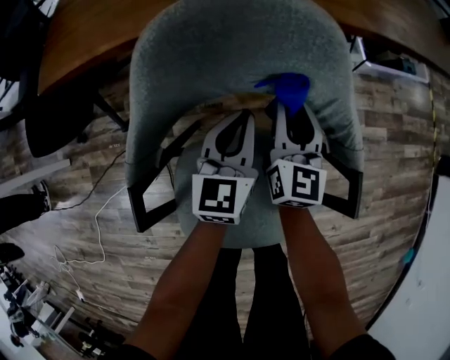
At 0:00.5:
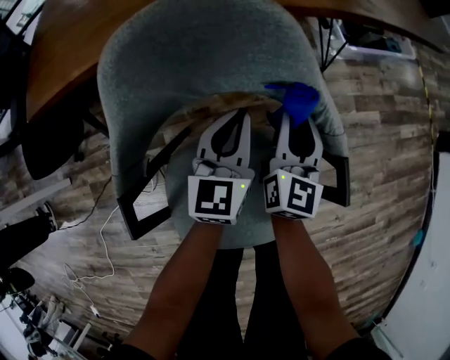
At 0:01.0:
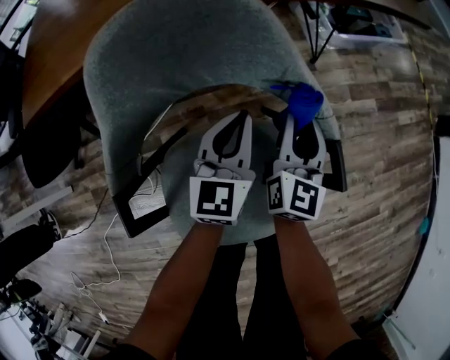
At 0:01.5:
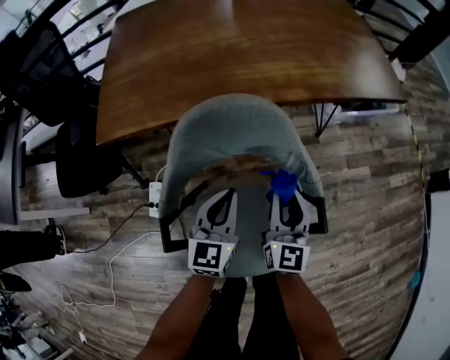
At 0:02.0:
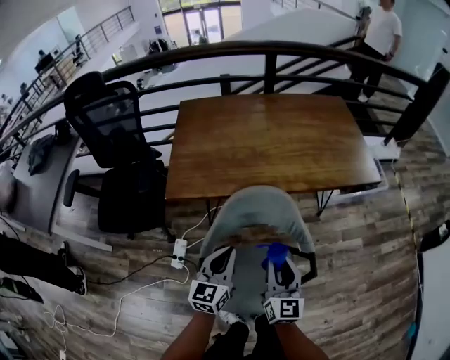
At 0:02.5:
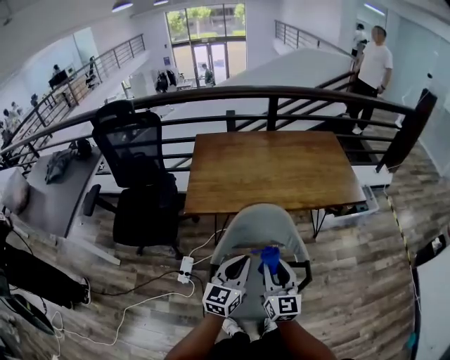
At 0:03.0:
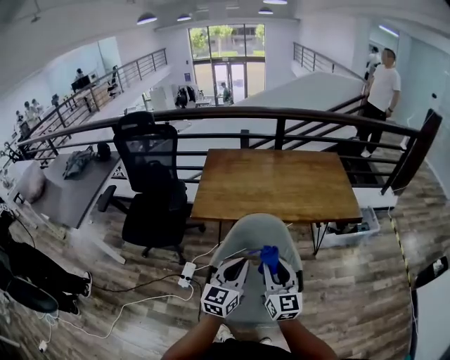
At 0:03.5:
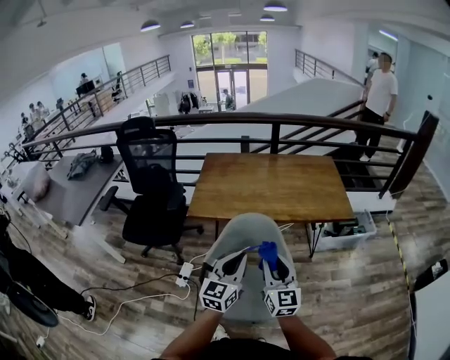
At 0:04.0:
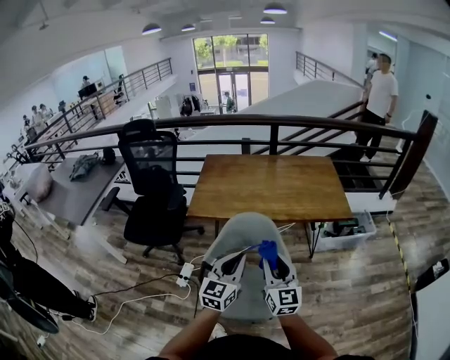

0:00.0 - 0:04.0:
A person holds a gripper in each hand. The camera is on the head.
0:00.0 - 0:02.0: Both grippers move upward and backward, approximately 30 cm.
0:02.0 - 0:04.0: The right gripper shifts some 20 cm upward and backward, while the left gripper heads upward, backward and to the right, covering some 25 cm.

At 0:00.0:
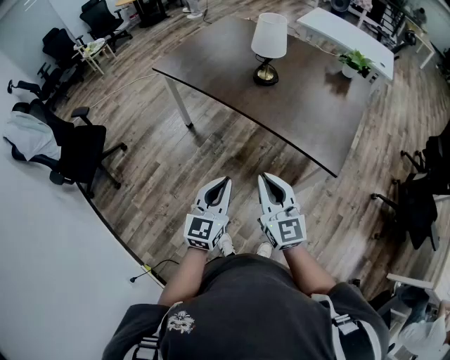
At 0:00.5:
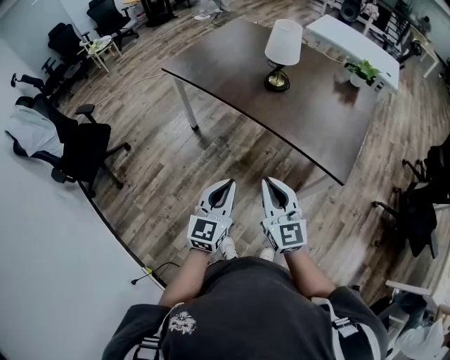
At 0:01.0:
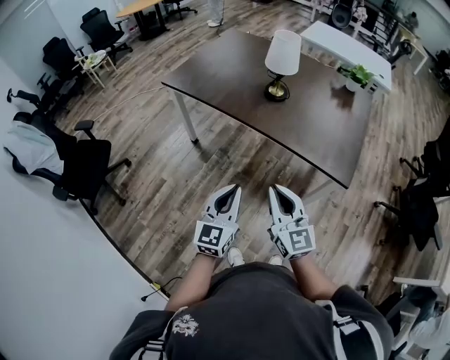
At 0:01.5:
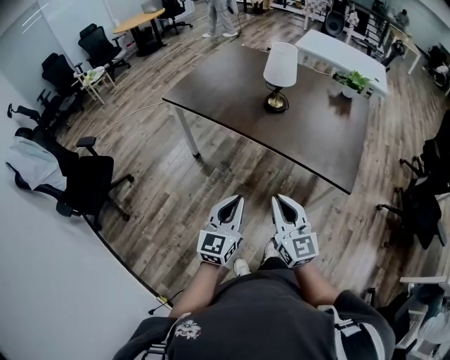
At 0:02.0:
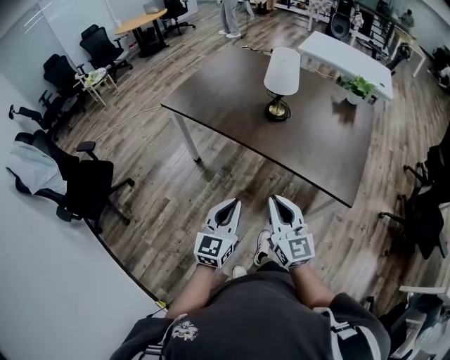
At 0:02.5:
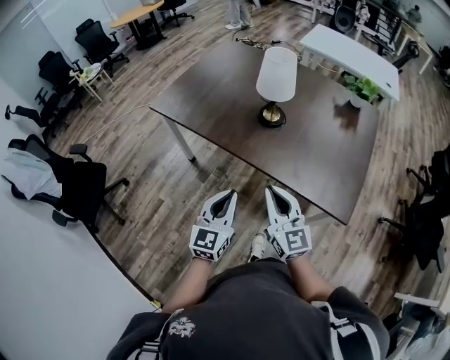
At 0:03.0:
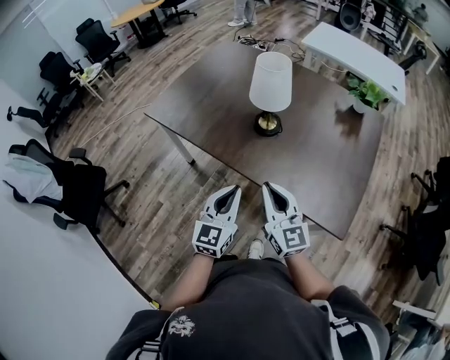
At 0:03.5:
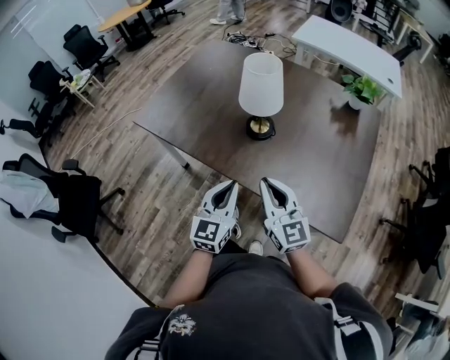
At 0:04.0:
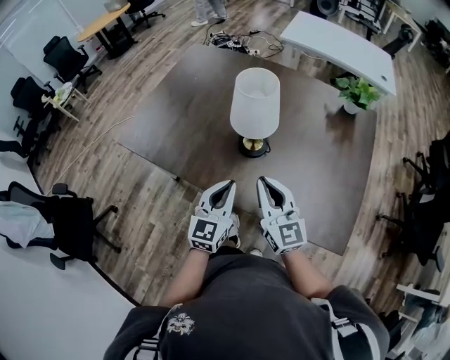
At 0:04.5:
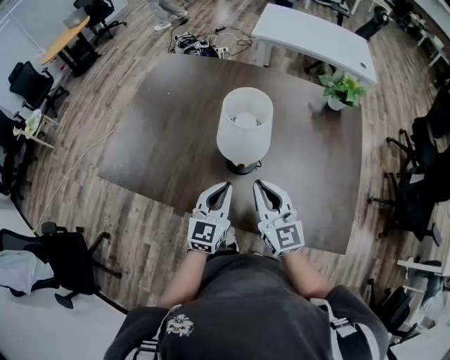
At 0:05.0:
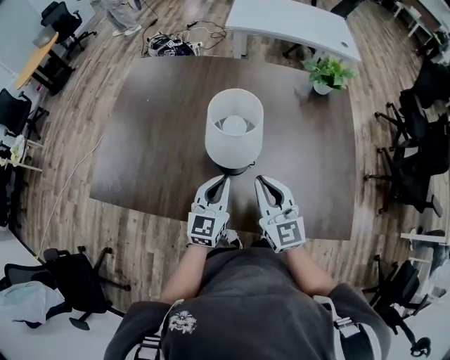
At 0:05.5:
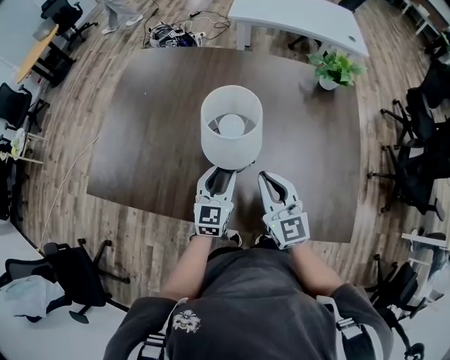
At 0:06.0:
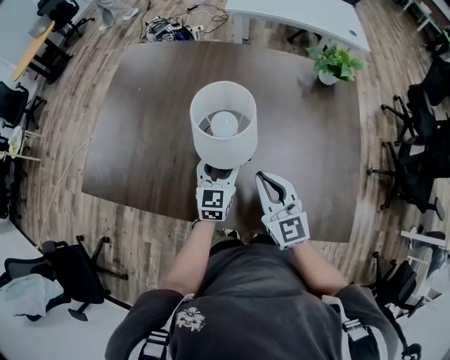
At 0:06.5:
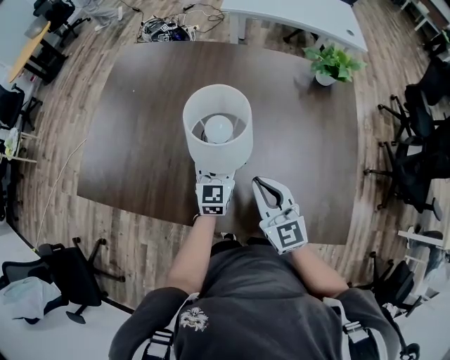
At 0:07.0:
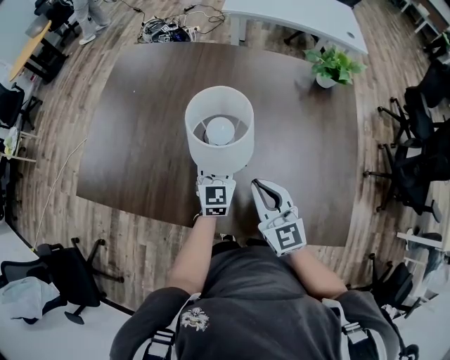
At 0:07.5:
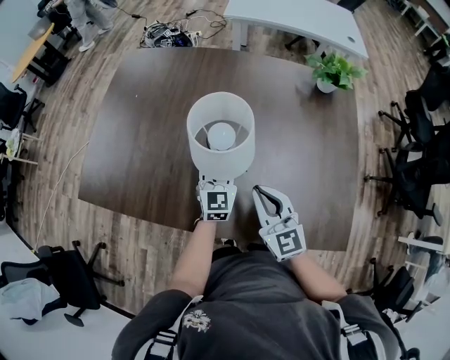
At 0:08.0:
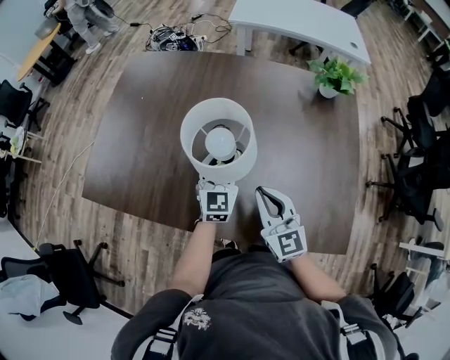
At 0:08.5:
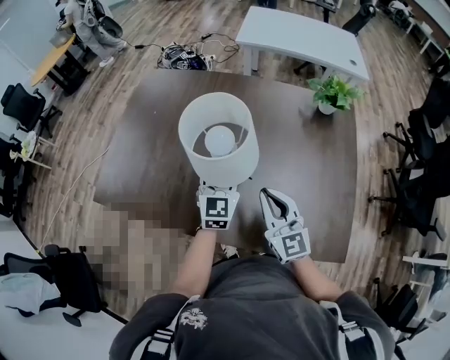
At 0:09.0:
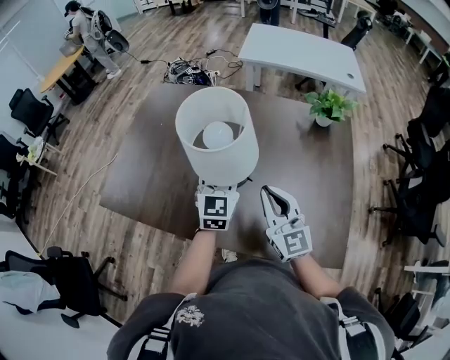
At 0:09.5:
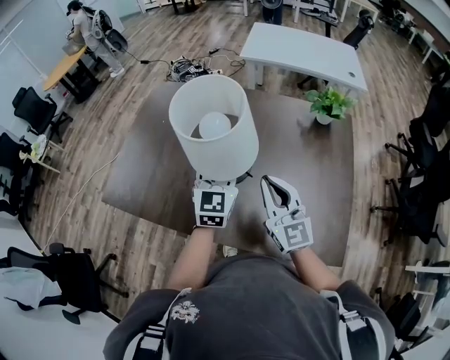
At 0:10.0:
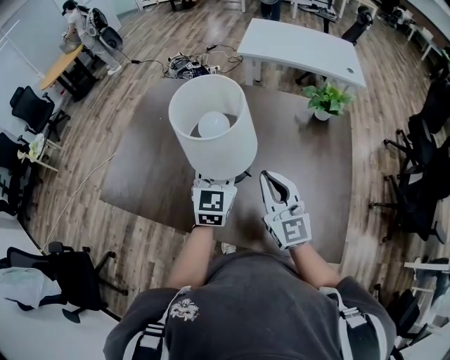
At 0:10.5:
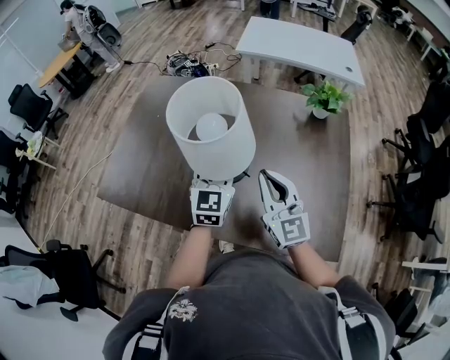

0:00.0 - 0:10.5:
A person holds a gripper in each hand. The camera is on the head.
0:00.0 - 0:02.0: The two grippers go approximately 10 cm forward and to the left.
0:02.0 - 0:04.0: The two grippers go approximately 35 cm forward.
0:04.0 - 0:06.5: The left gripper moves forward and downward, some 25 cm, and opens. Meanwhile the right gripper shifts some 15 cm forward and downward.
0:06.5 - 0:08.5: The right gripper heads upward, covering about 5 cm. Meanwhile the left gripper moves upward, about 10 cm, and closes.
0:08.5 - 0:10.5: The grippers both shift upward by some 5 cm.

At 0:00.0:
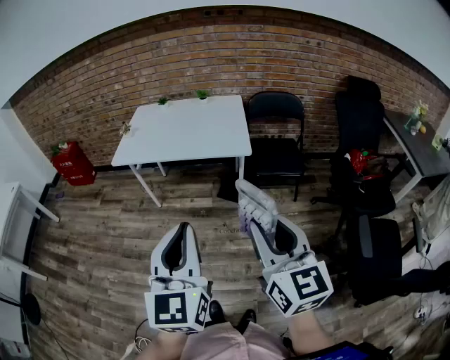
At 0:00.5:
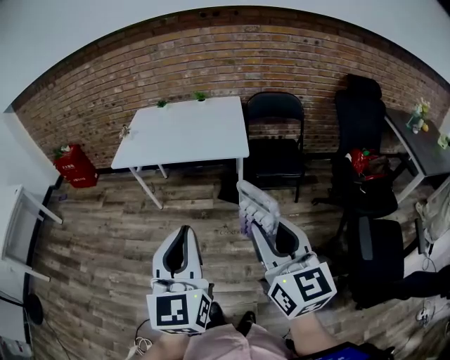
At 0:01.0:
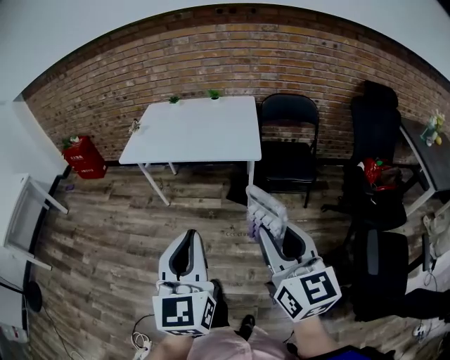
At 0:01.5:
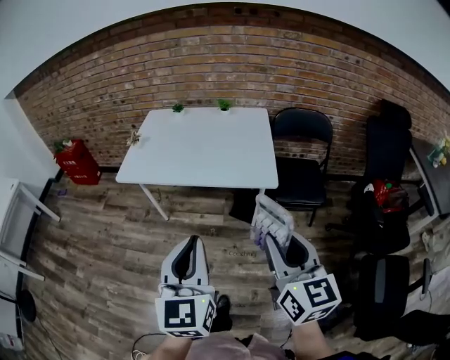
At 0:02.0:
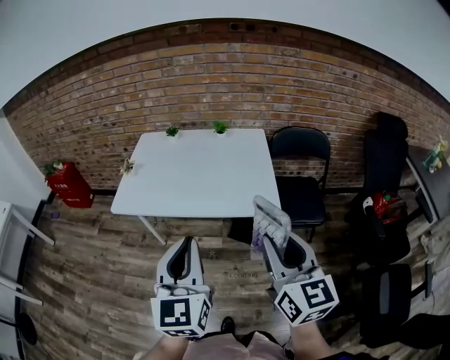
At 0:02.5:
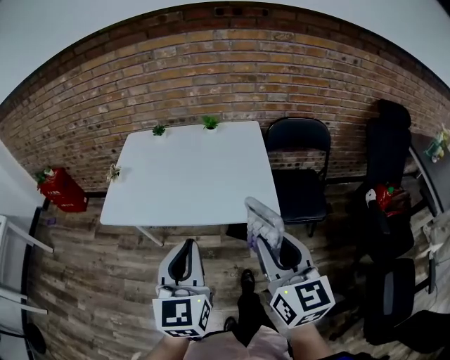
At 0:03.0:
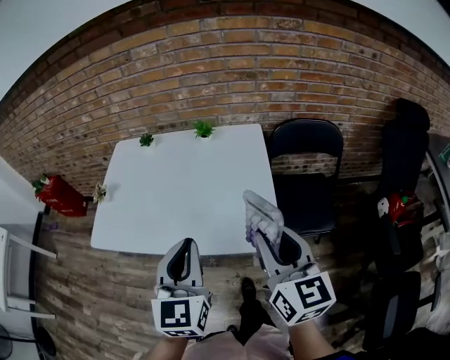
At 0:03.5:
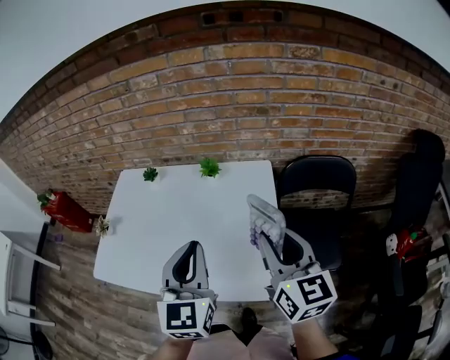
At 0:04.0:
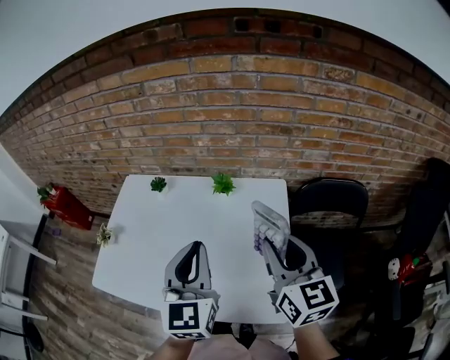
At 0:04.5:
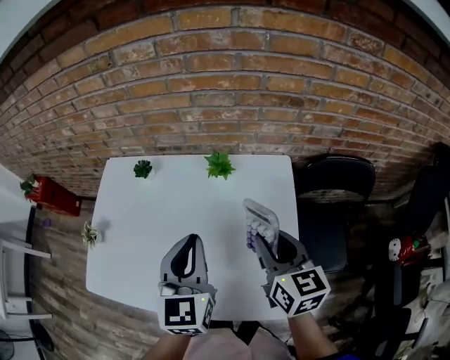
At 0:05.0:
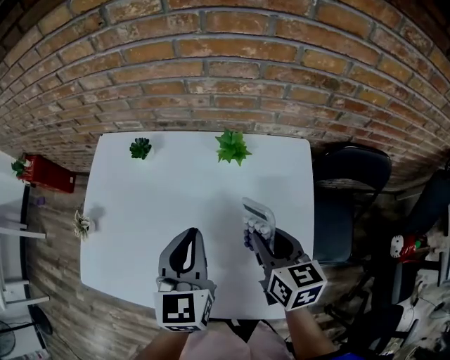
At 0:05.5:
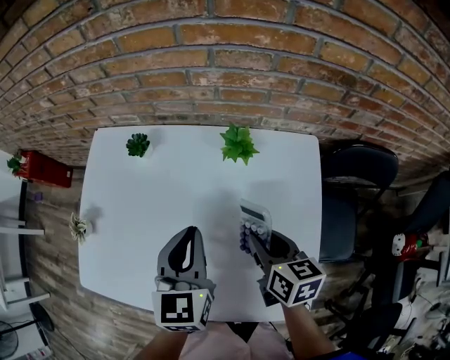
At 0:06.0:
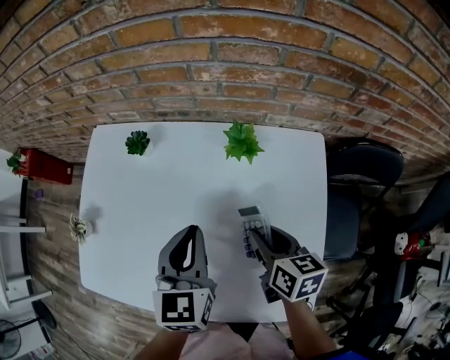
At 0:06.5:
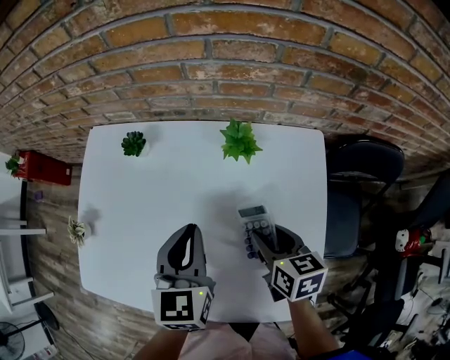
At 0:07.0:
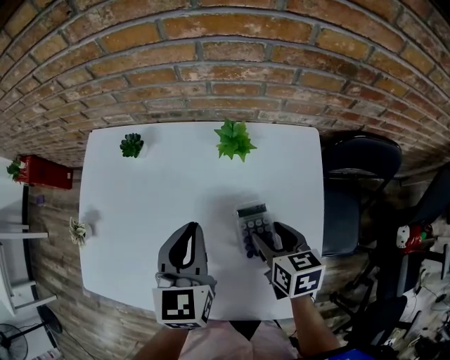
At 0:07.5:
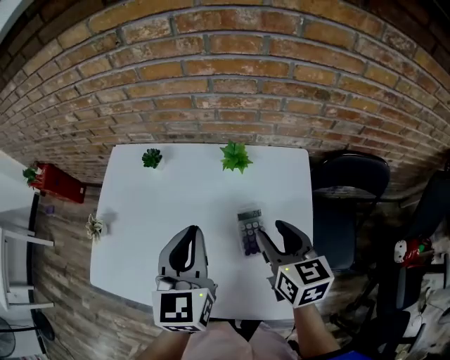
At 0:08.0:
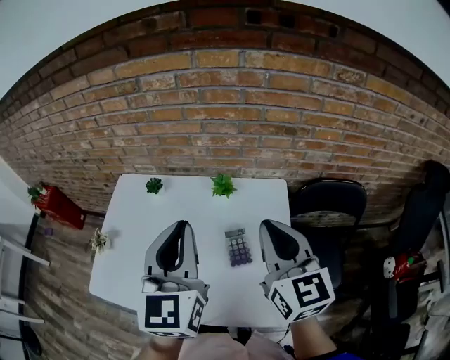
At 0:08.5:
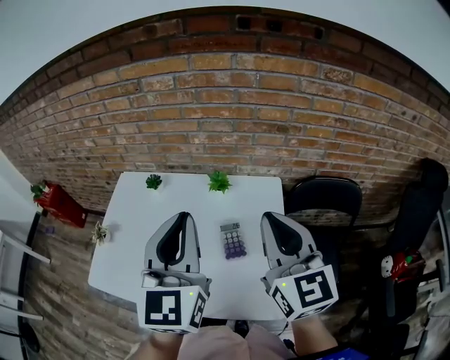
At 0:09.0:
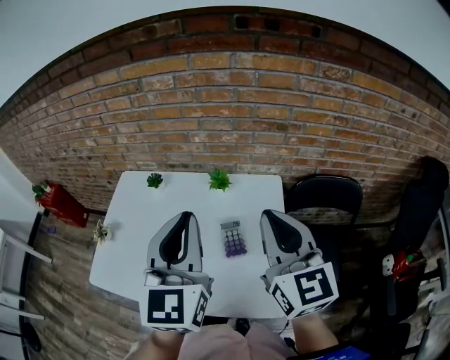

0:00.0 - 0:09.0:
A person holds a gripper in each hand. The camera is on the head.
0:00.0 - 0:02.0: Both grippers move forward, approximately 30 cm.
0:02.0 - 0:04.5: The pair of grippers is taken forward, approximately 50 cm. The right gripper swivels approximately 20 degrees.
0:04.5 - 0:07.0: The left gripper is displaced downward and forward by some 10 cm, while the right gripper moves downward, about 15 cm, turns by approximately 30 degrees, and opens.
0:07.0 - 0:09.0: The left gripper goes roughly 25 cm upward and backward, and changes its angle by about 30 degrees. Meanwhile the right gripper is displaced upward by approximately 35 cm, tips its fingers upward by about 40 degrees, and closes up.

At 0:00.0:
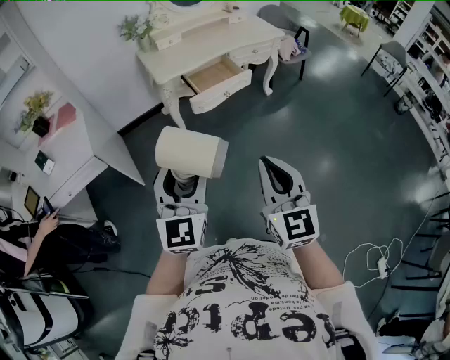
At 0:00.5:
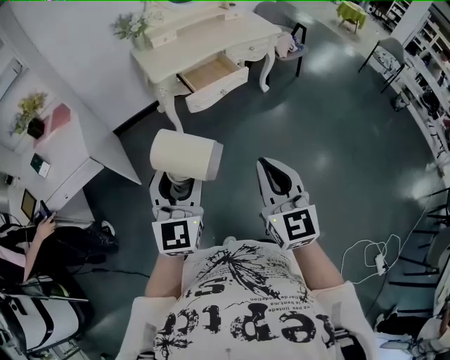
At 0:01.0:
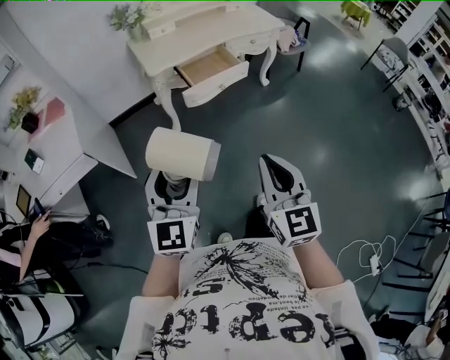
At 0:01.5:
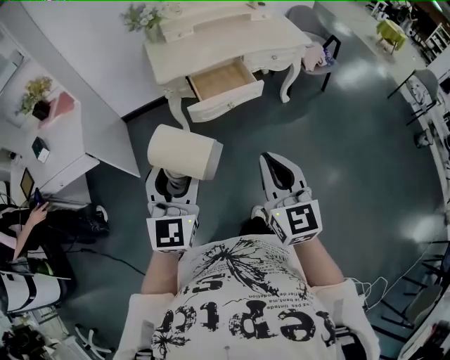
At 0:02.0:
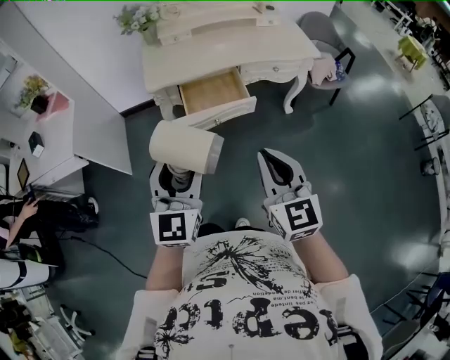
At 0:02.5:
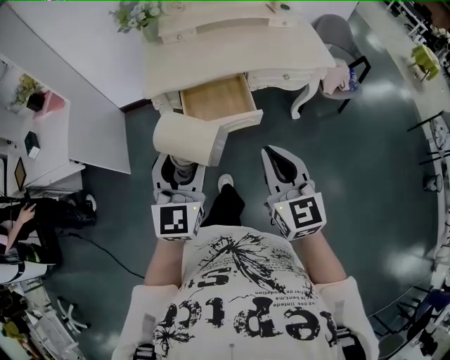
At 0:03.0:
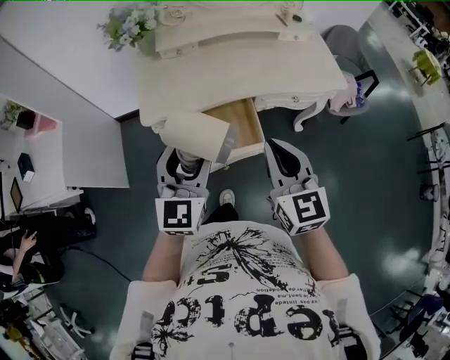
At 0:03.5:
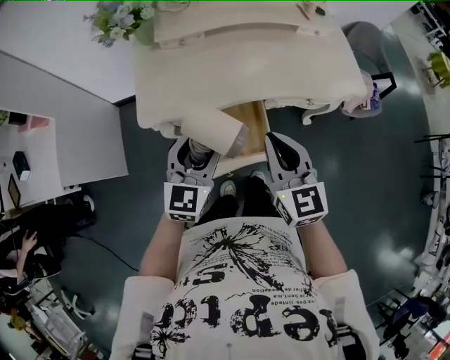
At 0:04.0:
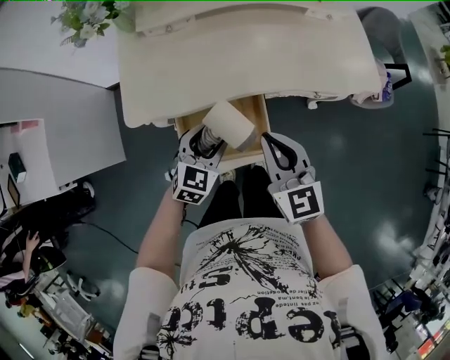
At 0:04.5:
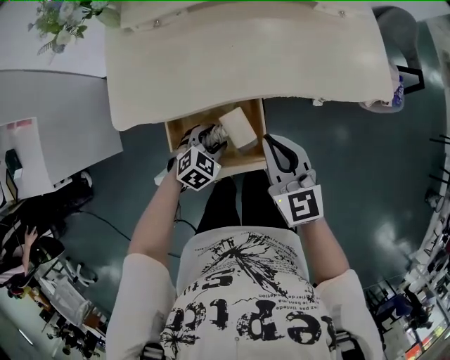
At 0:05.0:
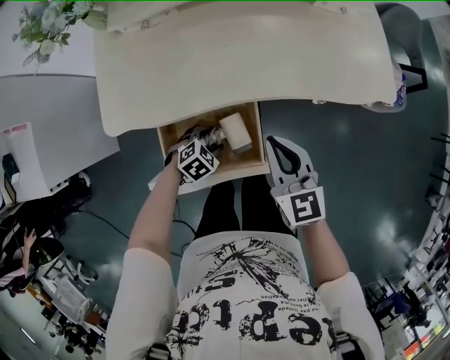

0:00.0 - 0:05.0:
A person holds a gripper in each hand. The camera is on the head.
0:00.0 - 0:02.5: Both grippers are carried forward and to the right, approximately 40 cm. The right gripper swivels approximately 20 degrees.
0:02.5 - 0:05.0: The left gripper heads downward and forward, covering approximately 50 cm, and angles its fingers downward, by approximately 60 degrees. Meanwhile the right gripper moves forward and downward, approximately 40 cm.
